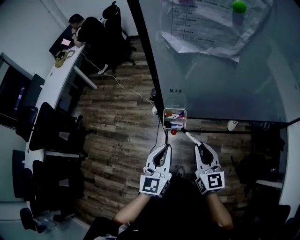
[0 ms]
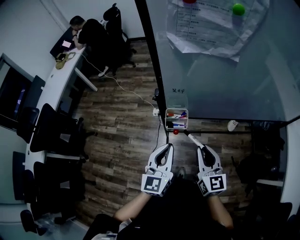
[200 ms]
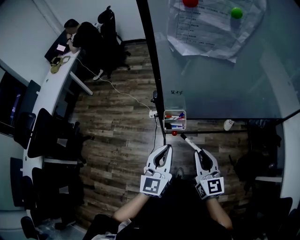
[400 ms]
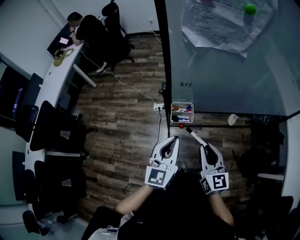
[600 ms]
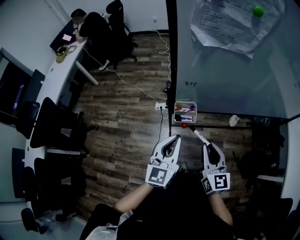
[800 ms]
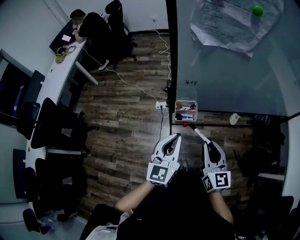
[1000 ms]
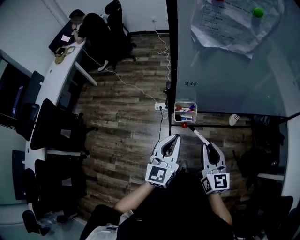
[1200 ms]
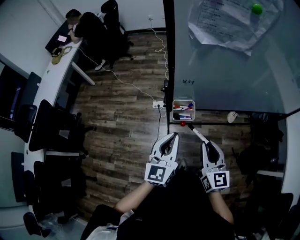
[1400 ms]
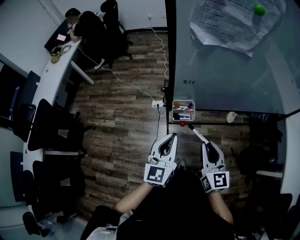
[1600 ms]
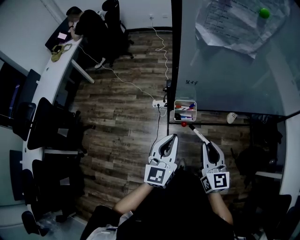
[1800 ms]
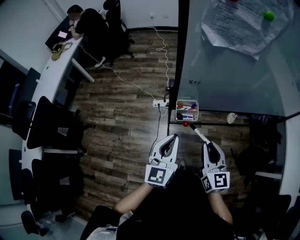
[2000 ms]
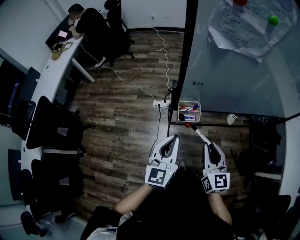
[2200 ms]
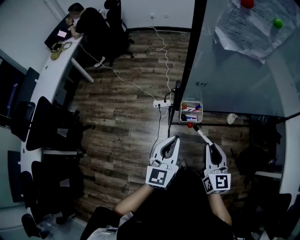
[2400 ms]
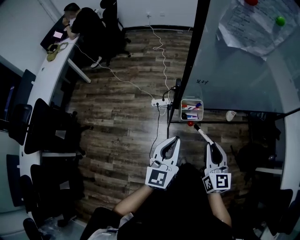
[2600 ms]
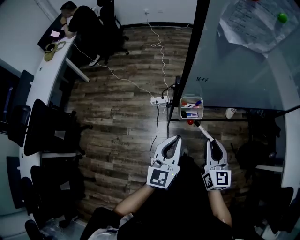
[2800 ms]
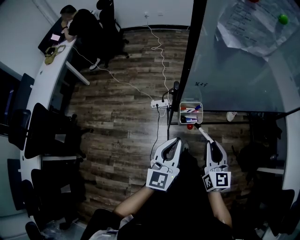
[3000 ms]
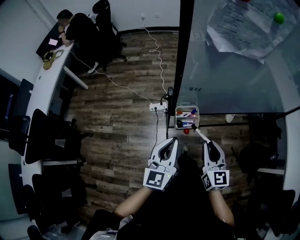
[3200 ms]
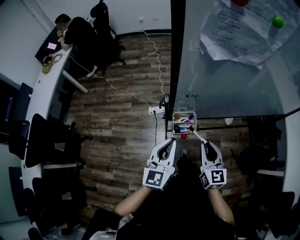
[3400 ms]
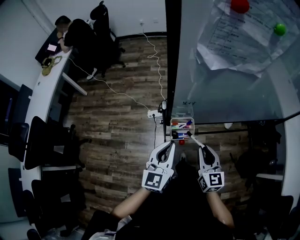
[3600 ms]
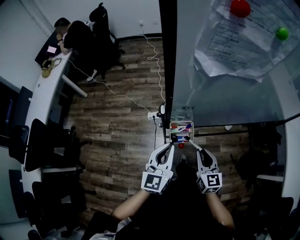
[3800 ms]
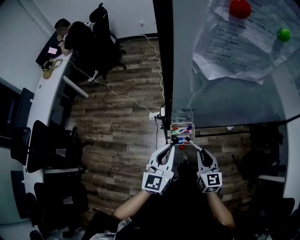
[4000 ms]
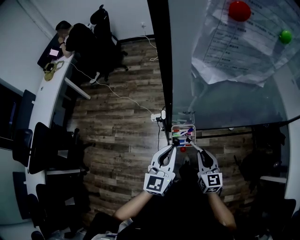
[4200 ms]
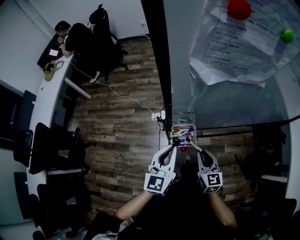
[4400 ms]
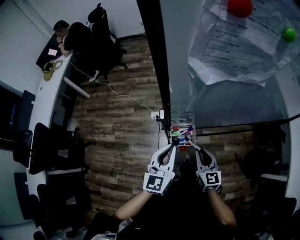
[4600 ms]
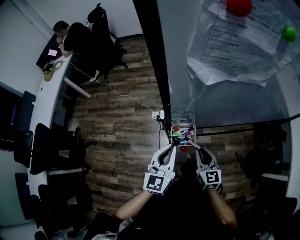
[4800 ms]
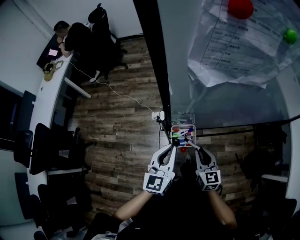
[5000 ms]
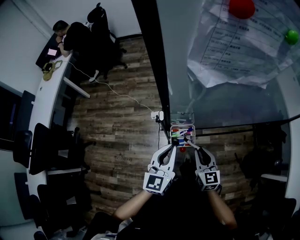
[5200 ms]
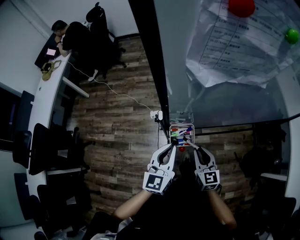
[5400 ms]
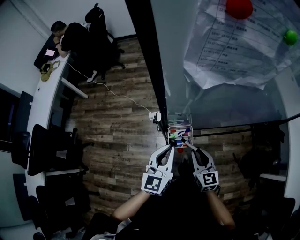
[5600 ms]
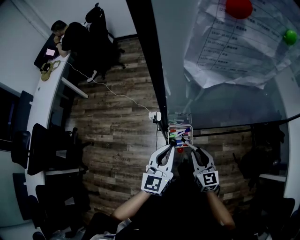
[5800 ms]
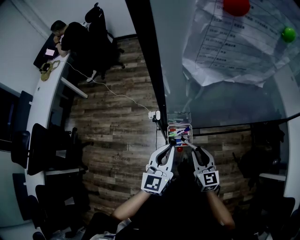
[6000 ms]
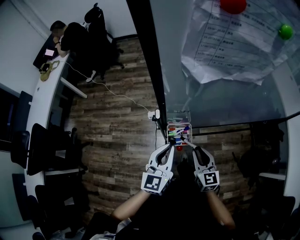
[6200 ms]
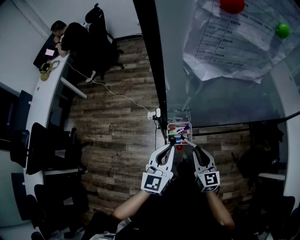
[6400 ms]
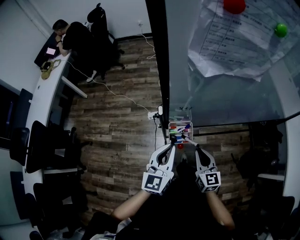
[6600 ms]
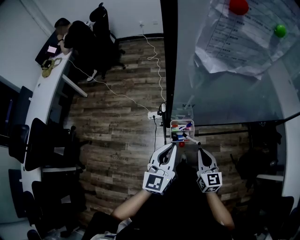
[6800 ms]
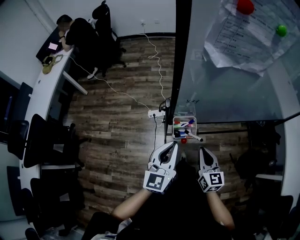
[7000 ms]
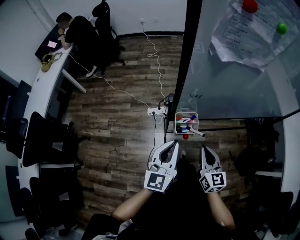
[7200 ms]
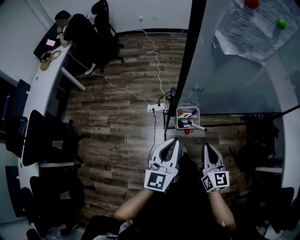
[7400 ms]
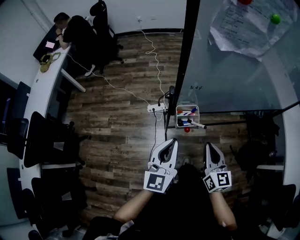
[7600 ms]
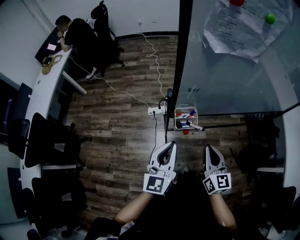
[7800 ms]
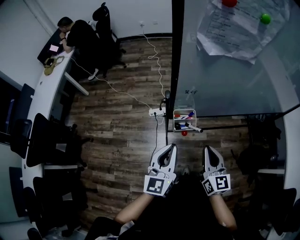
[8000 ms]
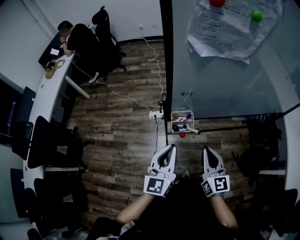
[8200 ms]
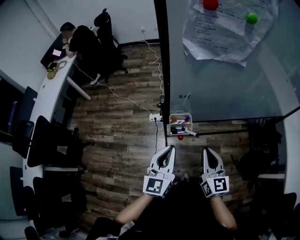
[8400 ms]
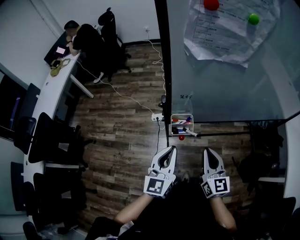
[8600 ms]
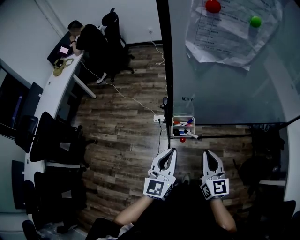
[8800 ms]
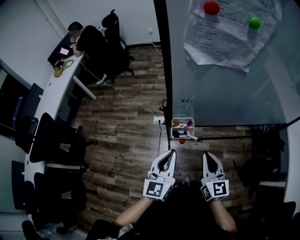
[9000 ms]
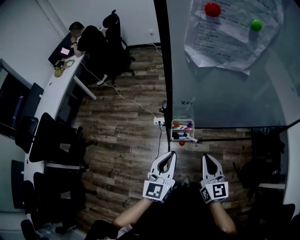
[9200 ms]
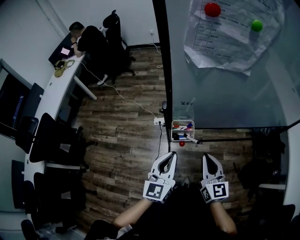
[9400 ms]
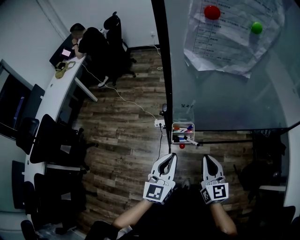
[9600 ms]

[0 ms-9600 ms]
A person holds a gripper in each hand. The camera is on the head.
0 ms to 1600 ms: The grippers stay close to where they were, moving slightly.
1600 ms to 3200 ms: The right gripper shifts by roughly 5 cm.
3200 ms to 4800 ms: The left gripper heads forward, covering some 5 cm. Meanwhile the right gripper travels downward and forward by about 10 cm.
4800 ms to 6400 ms: The grippers make only small movements.
6400 ms to 8000 ms: The right gripper travels upward and backward by some 10 cm, and closes; the left gripper goes some 10 cm backward.
8000 ms to 9600 ms: There are only small adjustments of the grippers.

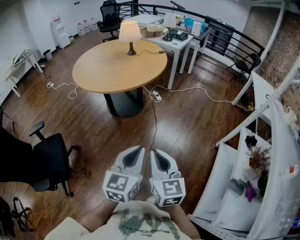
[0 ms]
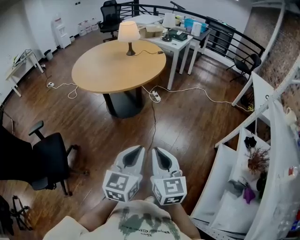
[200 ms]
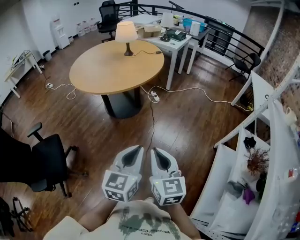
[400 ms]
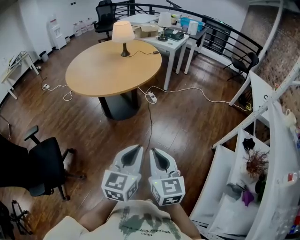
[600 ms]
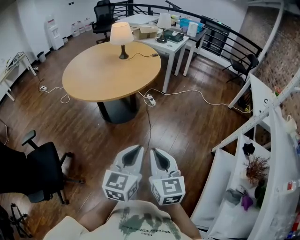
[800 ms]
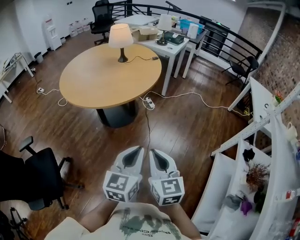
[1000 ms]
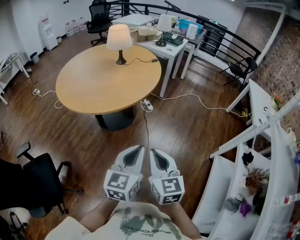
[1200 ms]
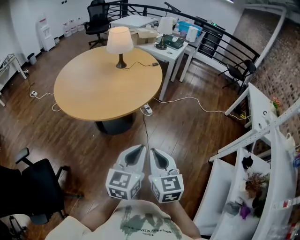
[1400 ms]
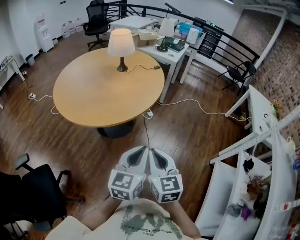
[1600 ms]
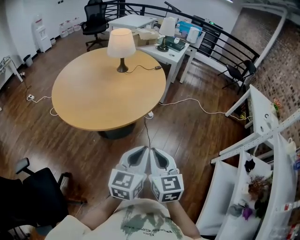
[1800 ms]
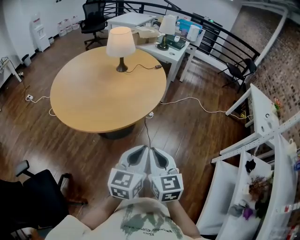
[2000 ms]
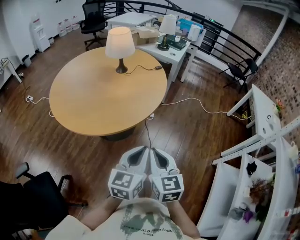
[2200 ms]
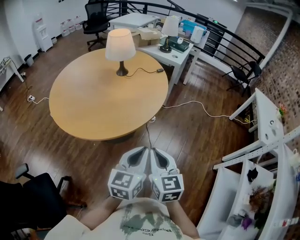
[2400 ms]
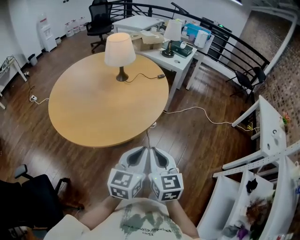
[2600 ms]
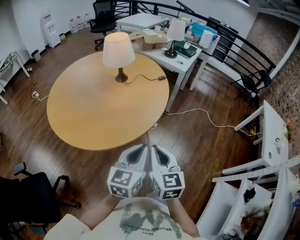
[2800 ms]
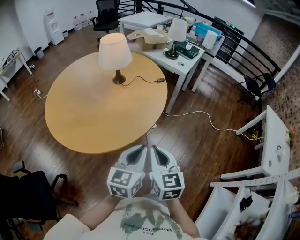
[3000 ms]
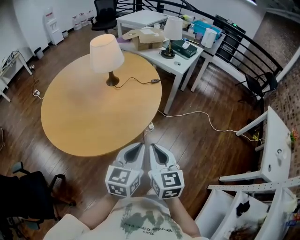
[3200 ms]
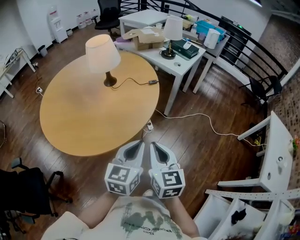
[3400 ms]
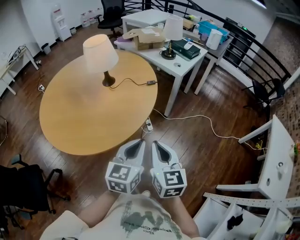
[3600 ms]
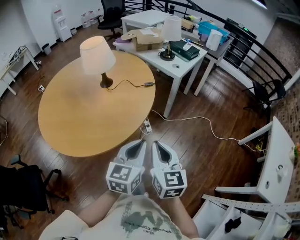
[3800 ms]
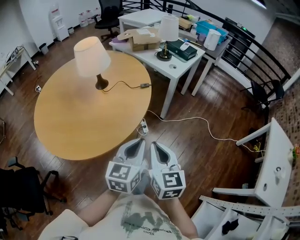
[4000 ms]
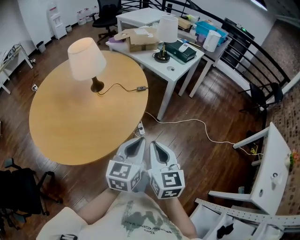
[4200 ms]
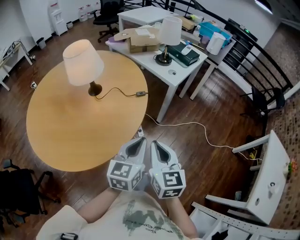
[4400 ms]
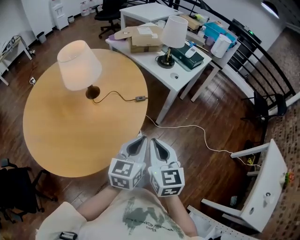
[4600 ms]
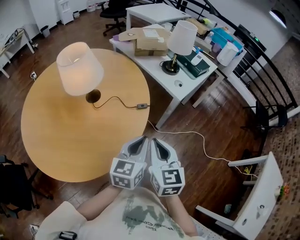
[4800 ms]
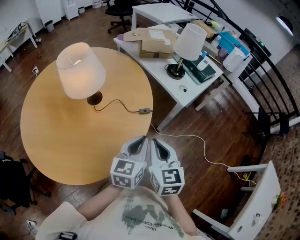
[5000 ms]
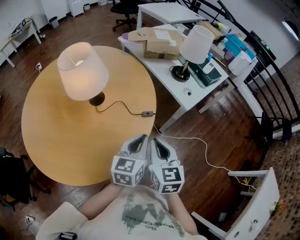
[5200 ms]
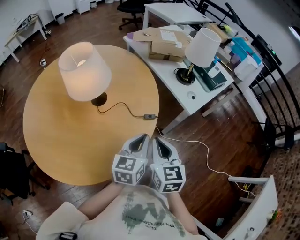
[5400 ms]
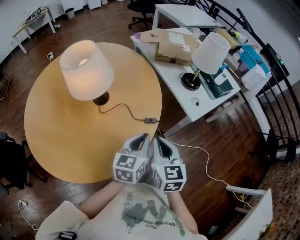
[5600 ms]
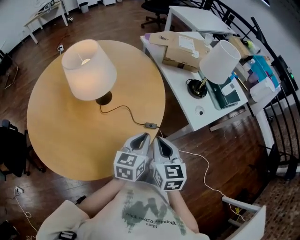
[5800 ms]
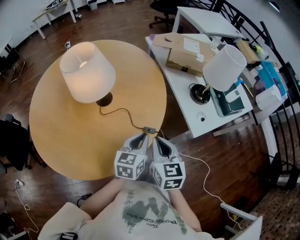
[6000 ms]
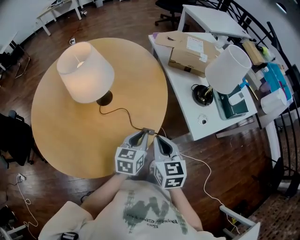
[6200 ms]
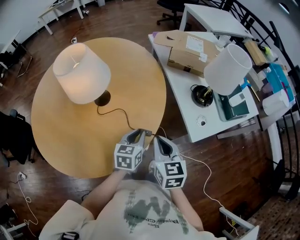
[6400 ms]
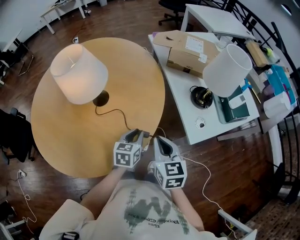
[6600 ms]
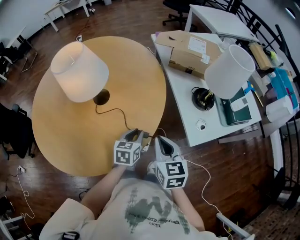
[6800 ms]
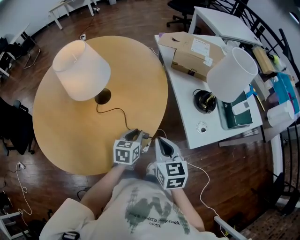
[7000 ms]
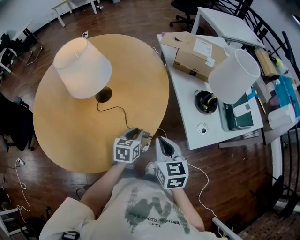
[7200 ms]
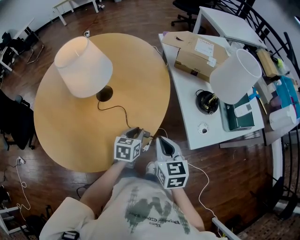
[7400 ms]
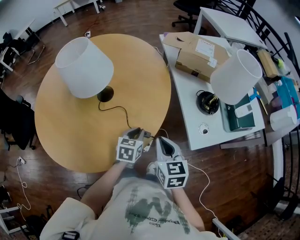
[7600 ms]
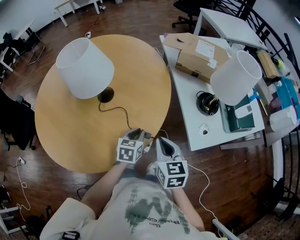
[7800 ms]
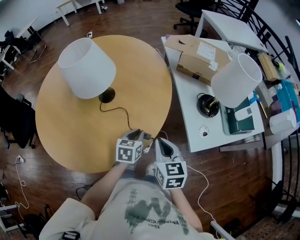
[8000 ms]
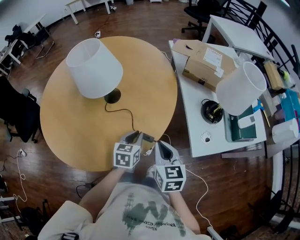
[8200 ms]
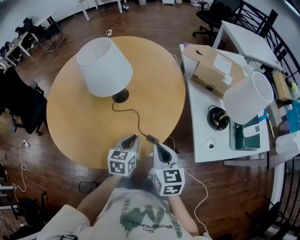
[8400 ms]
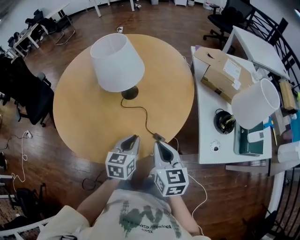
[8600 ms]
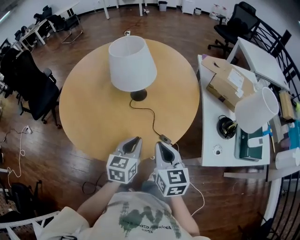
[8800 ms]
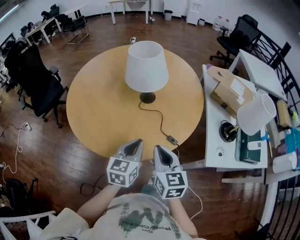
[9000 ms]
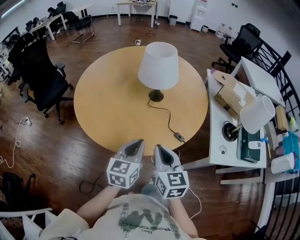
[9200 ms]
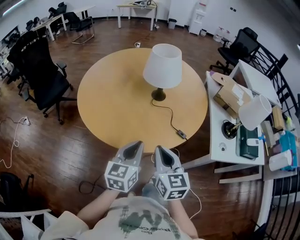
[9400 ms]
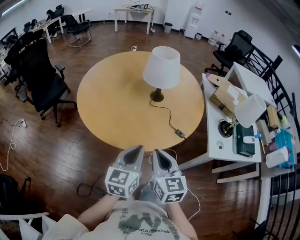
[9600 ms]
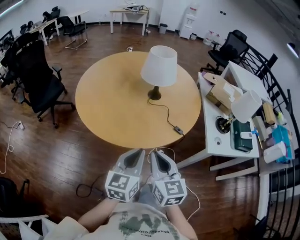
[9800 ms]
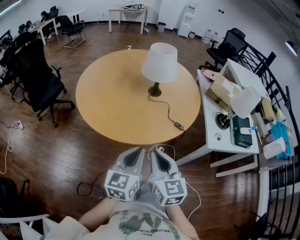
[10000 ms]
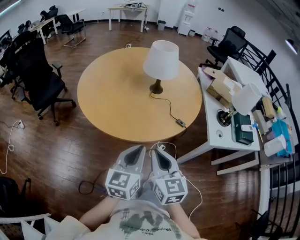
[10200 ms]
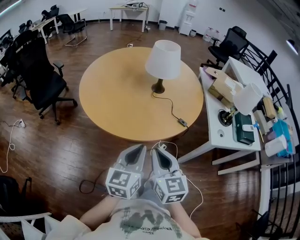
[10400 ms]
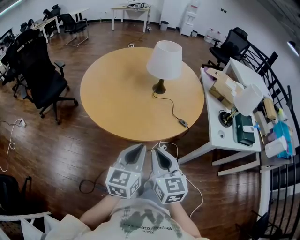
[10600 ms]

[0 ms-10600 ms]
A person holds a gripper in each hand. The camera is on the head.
0 ms to 1600 ms: Both grippers travel together forward, roughly 30 cm.
1600 ms to 3000 ms: Both grippers move forward, some 25 cm.
3000 ms to 4600 ms: Both grippers travel together forward and to the right, about 35 cm.
4600 ms to 6000 ms: The left gripper moves some 25 cm, and rotates some 30 degrees; the right gripper ends up some 25 cm from where it was, and rotates about 30 degrees.
6000 ms to 7600 ms: The right gripper heads to the right, covering some 5 cm. The left gripper goes approximately 15 cm downward and forward, and turns by some 20 degrees.
7600 ms to 9000 ms: The right gripper shifts roughly 15 cm to the left, upward and backward. The left gripper goes approximately 25 cm upward, to the left and backward, and rotates about 30 degrees.
9000 ms to 10600 ms: The grippers both shift backward and to the left by roughly 20 cm.

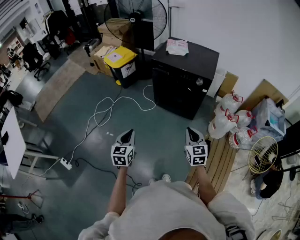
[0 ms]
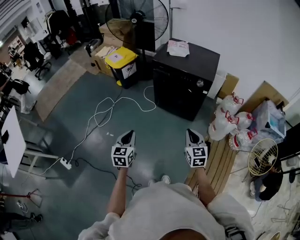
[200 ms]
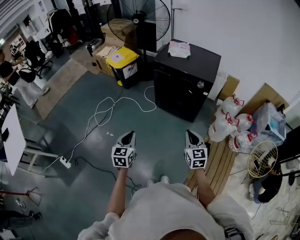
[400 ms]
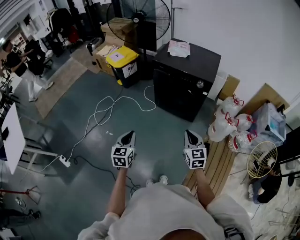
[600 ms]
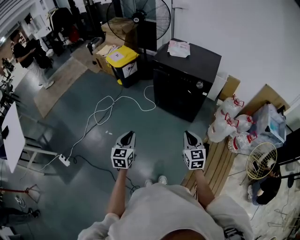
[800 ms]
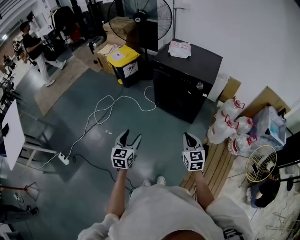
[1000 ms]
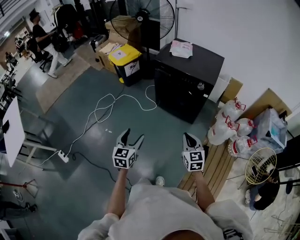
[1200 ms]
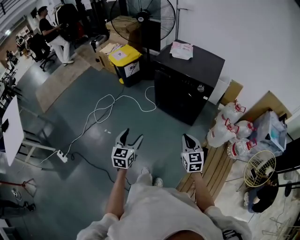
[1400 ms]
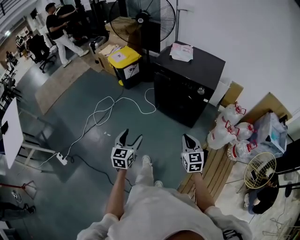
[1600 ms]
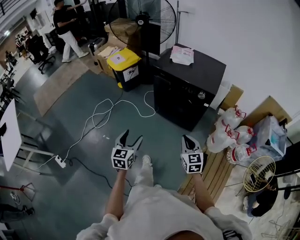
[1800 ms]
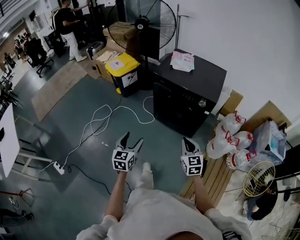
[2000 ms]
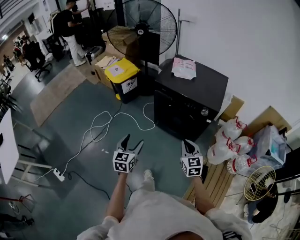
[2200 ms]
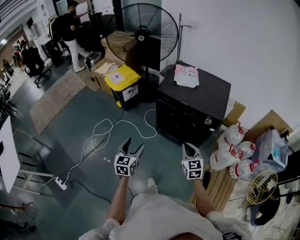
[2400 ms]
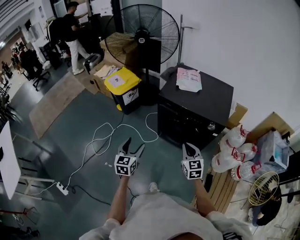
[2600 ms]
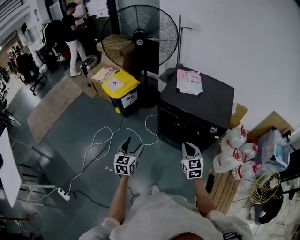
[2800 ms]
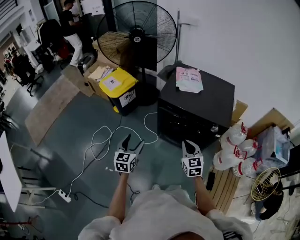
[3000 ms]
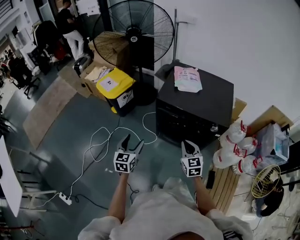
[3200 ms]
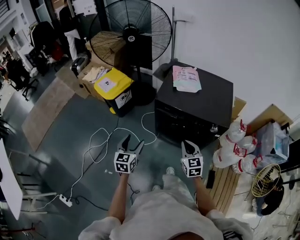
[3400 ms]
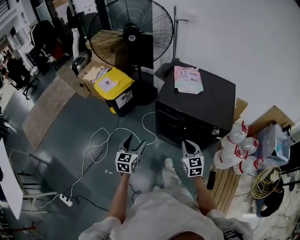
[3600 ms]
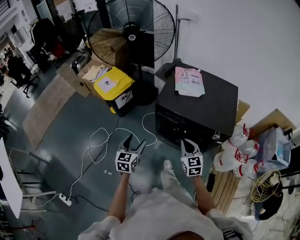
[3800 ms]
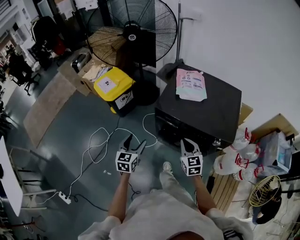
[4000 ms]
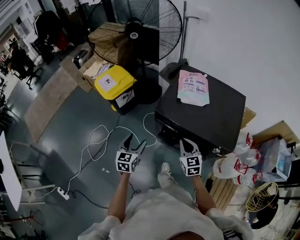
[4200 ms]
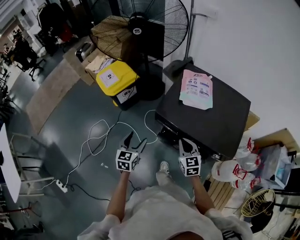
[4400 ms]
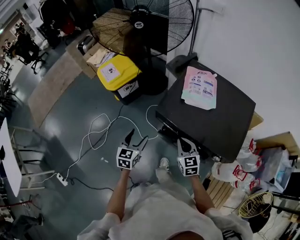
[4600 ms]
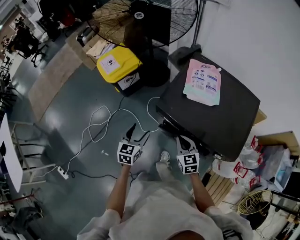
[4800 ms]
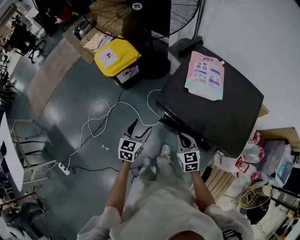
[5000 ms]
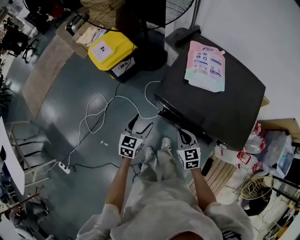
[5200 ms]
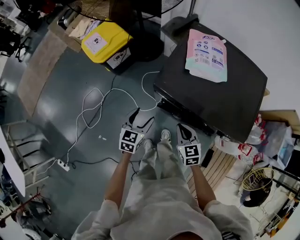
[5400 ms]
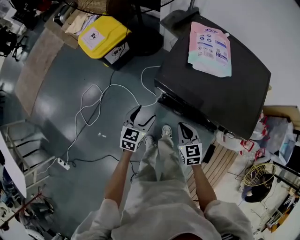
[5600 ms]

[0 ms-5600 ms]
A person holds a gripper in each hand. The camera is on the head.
0 ms to 1400 ms: The left gripper heads to the right, covering about 5 cm, and opens.
1400 ms to 2800 ms: Both grippers move forward, some 35 cm.
2800 ms to 4200 ms: Both grippers move forward, roughly 20 cm.
4200 ms to 5600 ms: The left gripper goes roughly 15 cm downward and forward; the right gripper heads downward, covering about 15 cm.
